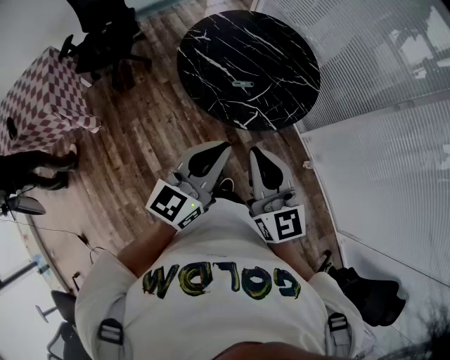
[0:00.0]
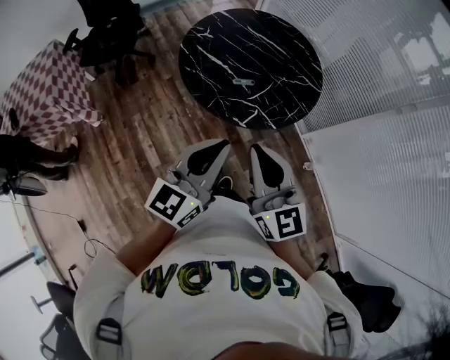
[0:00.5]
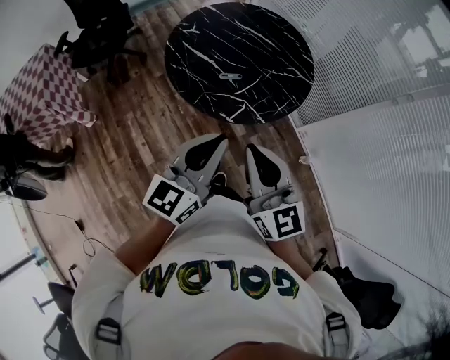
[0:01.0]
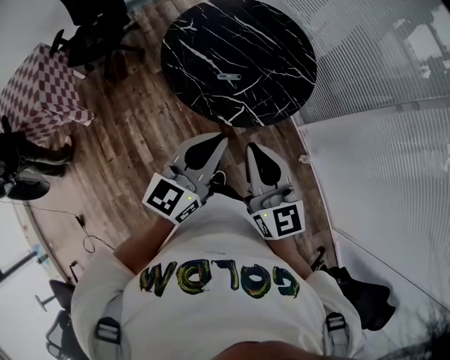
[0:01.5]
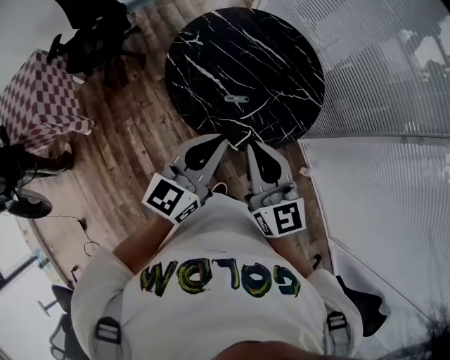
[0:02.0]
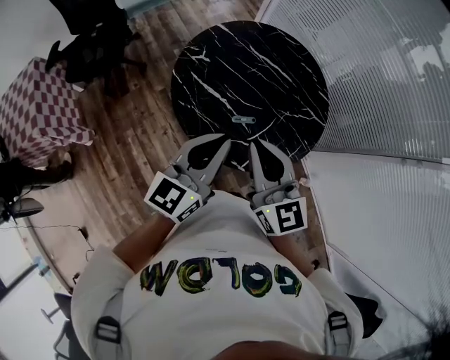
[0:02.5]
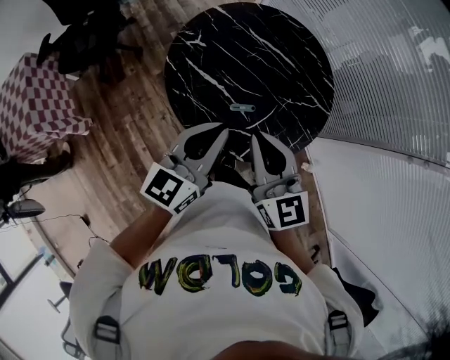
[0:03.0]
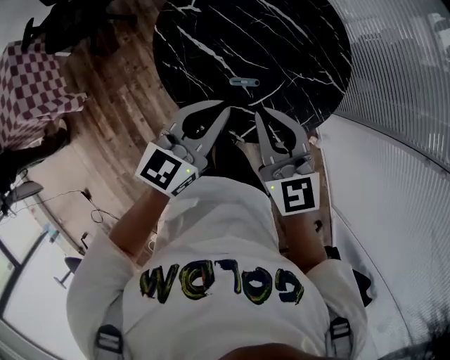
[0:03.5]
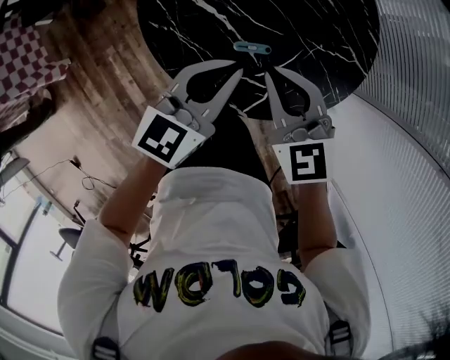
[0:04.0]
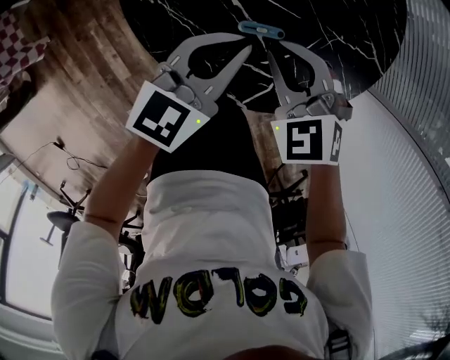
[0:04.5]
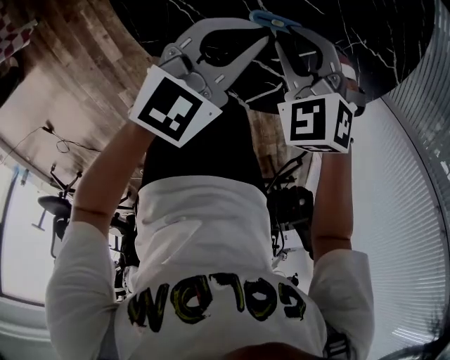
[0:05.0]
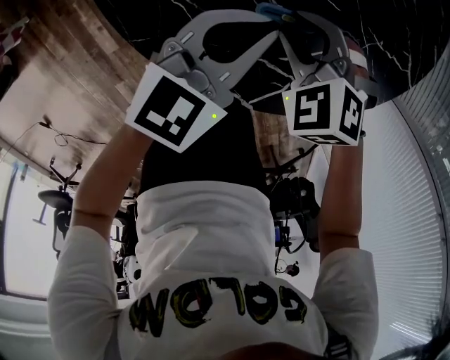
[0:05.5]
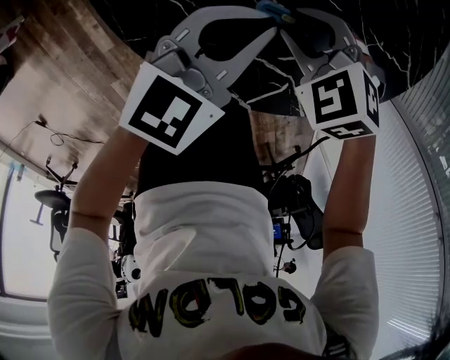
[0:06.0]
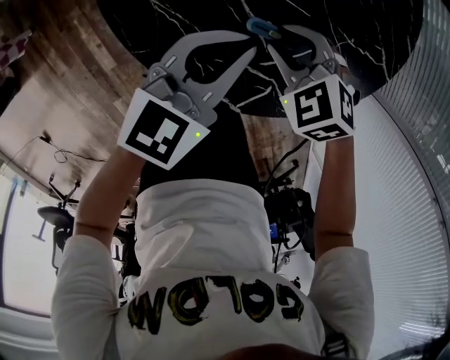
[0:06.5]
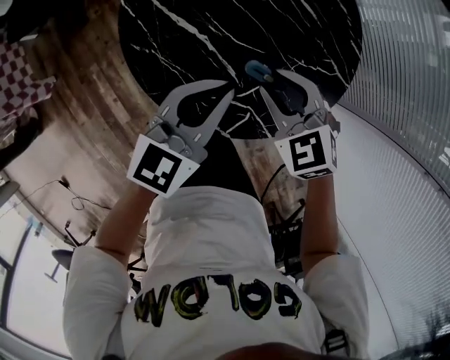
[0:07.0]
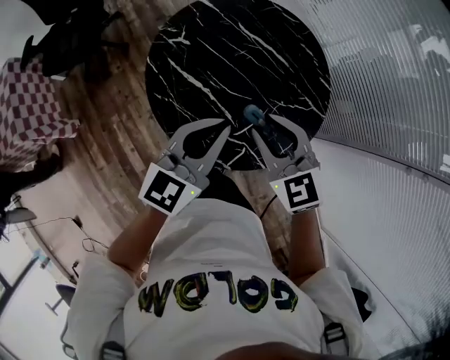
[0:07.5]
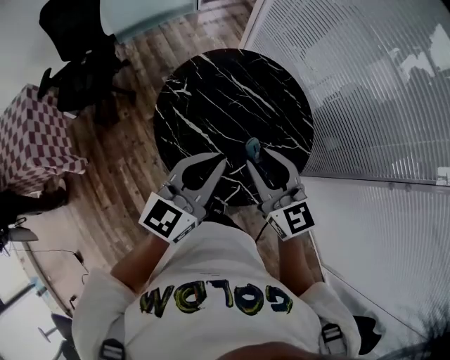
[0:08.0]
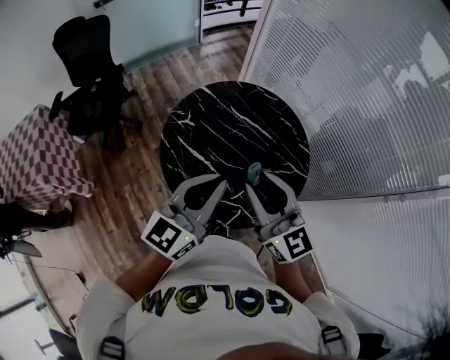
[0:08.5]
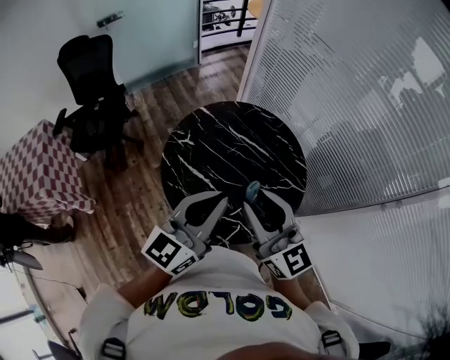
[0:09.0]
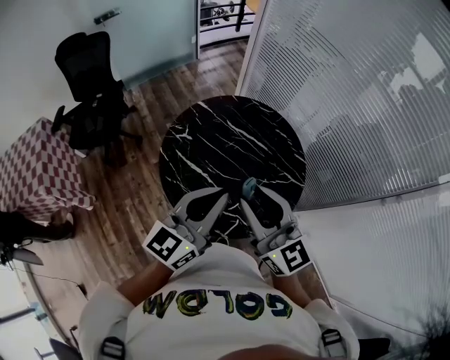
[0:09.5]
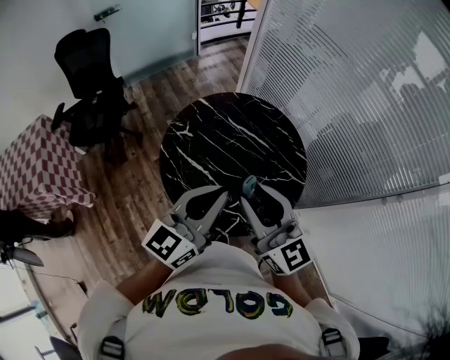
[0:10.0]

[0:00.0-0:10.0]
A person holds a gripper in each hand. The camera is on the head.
0:00.0 to 0:02.0: The two grippers go roughly 15 cm forward.
0:02.0 to 0:04.0: The two grippers go approximately 25 cm downward and forward. The right gripper tilts its fingers roughly 30 degrees downward.
0:04.0 to 0:06.0: The grippers both shift downward by approximately 20 cm. The right gripper angles its fingers downward, by about 30 degrees, and opens up.
0:06.0 to 0:08.0: The grippers both shift upward by about 40 cm. The right gripper points its fingers approximately 60 degrees further upward. The left gripper changes its angle by about 20 degrees.
0:08.0 to 0:10.0: The right gripper heads upward, covering approximately 10 cm. The left gripper travels upward by approximately 5 cm.

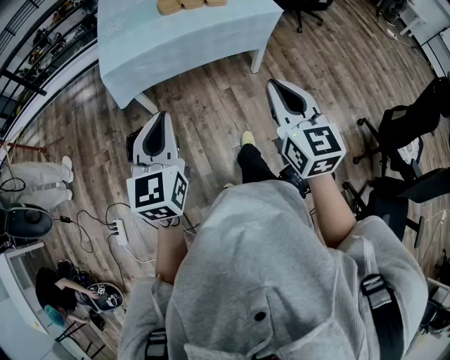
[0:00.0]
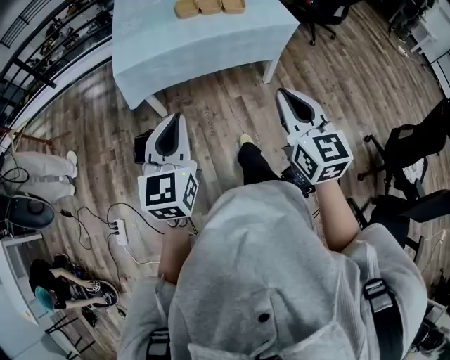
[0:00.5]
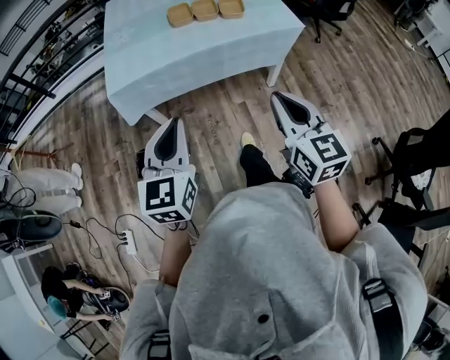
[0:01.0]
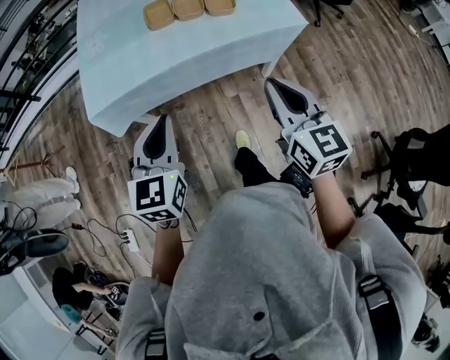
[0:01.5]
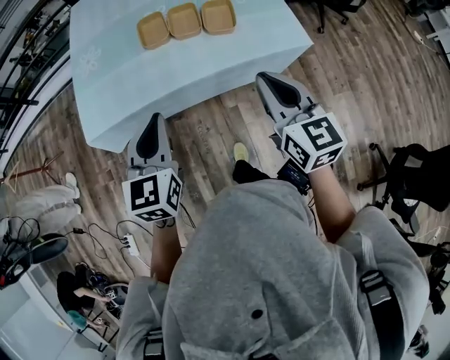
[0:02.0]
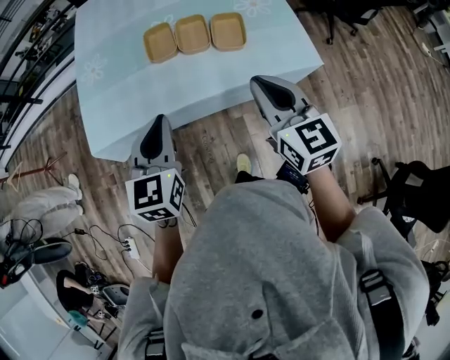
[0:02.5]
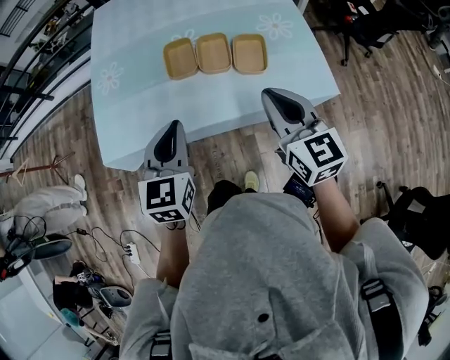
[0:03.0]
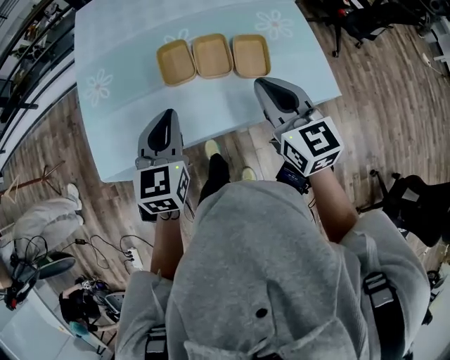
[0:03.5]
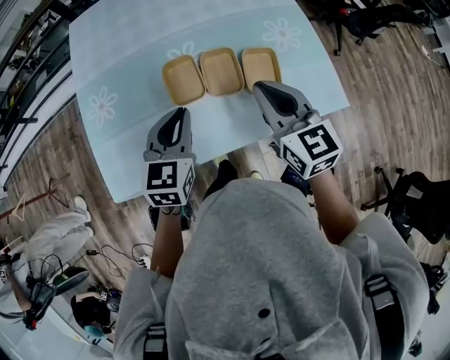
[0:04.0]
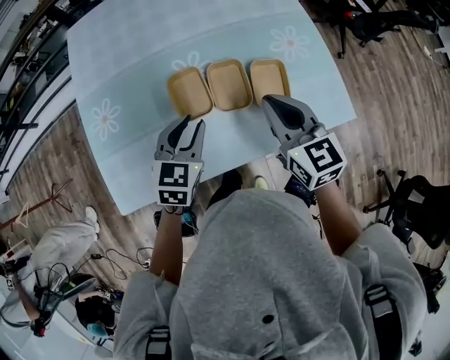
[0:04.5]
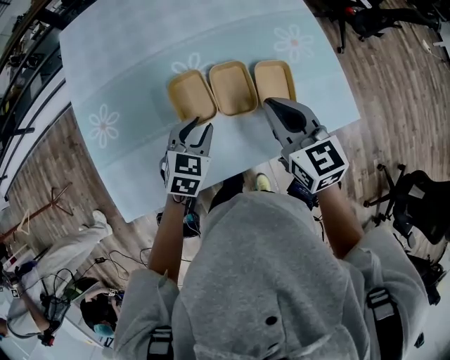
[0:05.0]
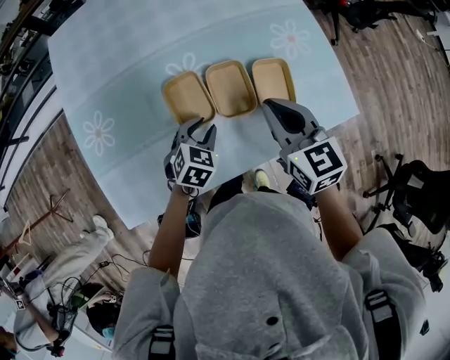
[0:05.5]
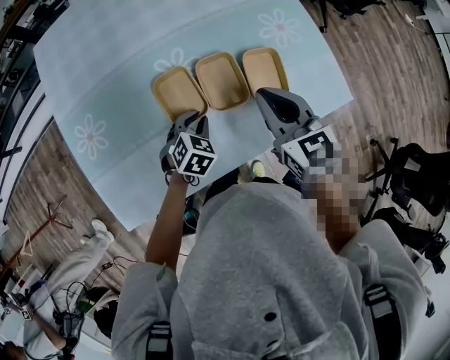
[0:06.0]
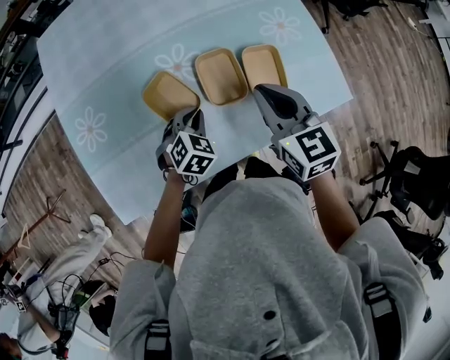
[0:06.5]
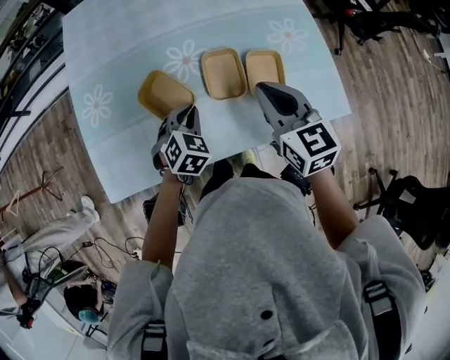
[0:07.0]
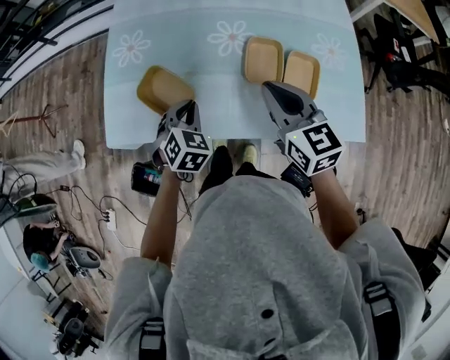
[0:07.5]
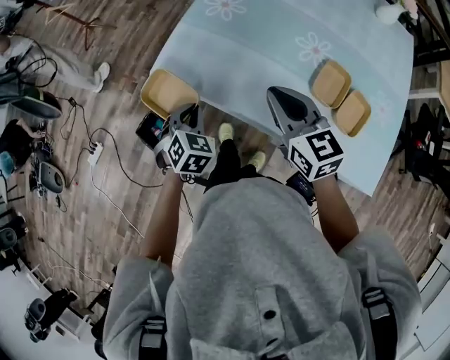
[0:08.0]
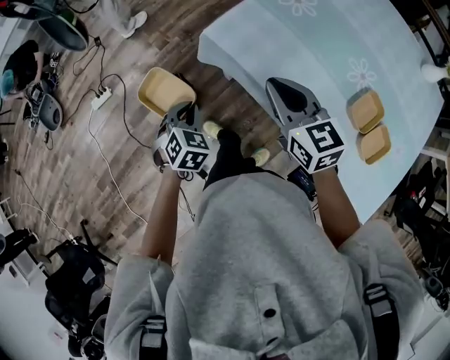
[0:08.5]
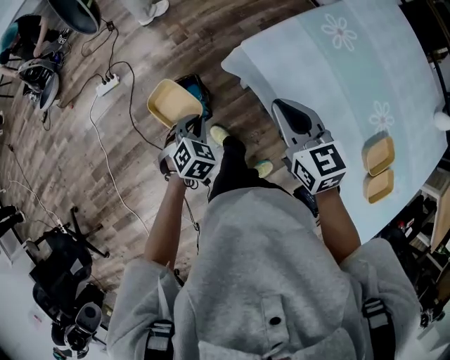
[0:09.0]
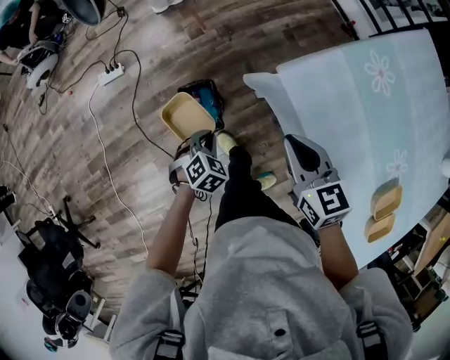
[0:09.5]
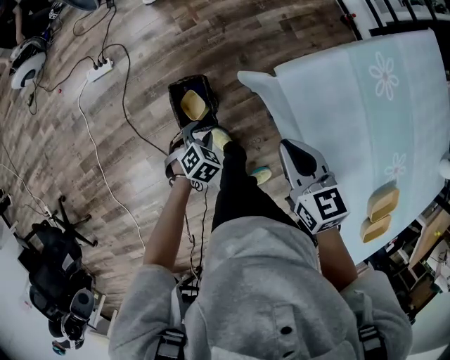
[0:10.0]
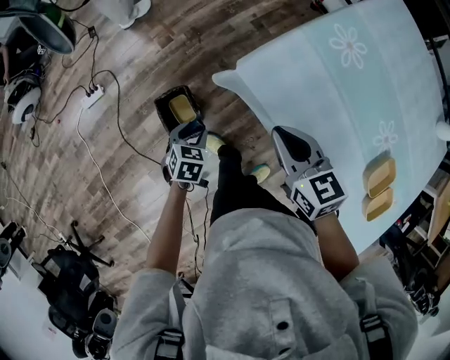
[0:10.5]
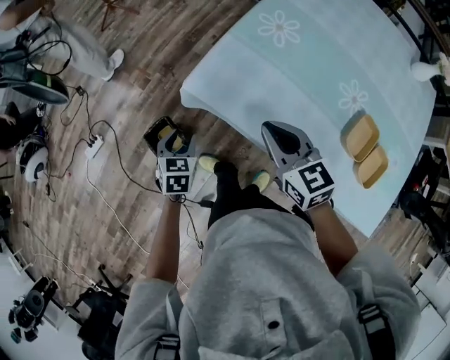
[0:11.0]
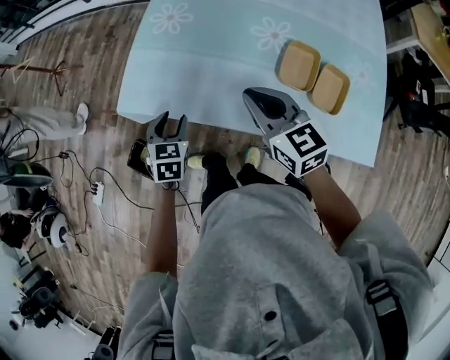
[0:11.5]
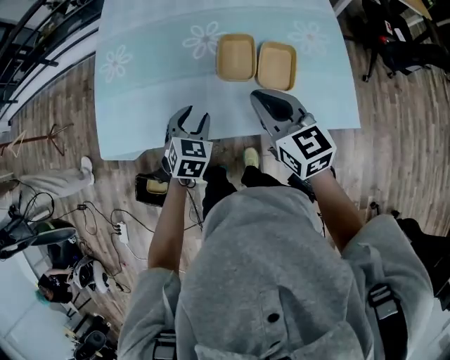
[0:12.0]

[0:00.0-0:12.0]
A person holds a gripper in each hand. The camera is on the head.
0:00.0 to 0:02.0: The two grippers travel together, forward, about 40 cm.
0:02.0 to 0:04.0: Both grippers move forward, about 30 cm.
0:04.0 to 0:06.0: The right gripper moves downward, some 5 cm. The left gripper goes approximately 20 cm downward, and tilts its fingers approximately 30 degrees downward.
0:06.0 to 0:08.0: The right gripper shifts by some 25 cm, and swivels about 50 degrees. The left gripper ends up roughly 35 cm from where it was, and changes its angle by about 60 degrees.
0:08.0 to 0:10.0: The right gripper shifts roughly 30 cm to the left, forward and downward, and rotates about 40 degrees. Meanwhile the left gripper goes roughly 35 cm to the left and downward, turns by about 40 degrees, and opens.
0:10.0 to 0:12.0: Both grippers are carried some 50 cm. The right gripper rotates roughly 60 degrees; the left gripper rotates some 60 degrees.

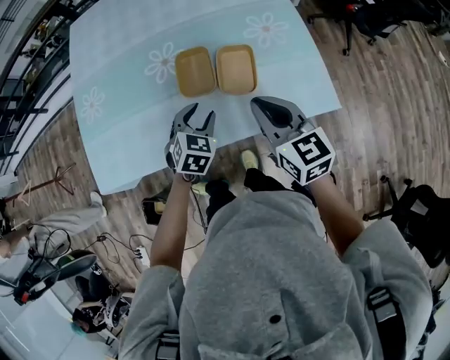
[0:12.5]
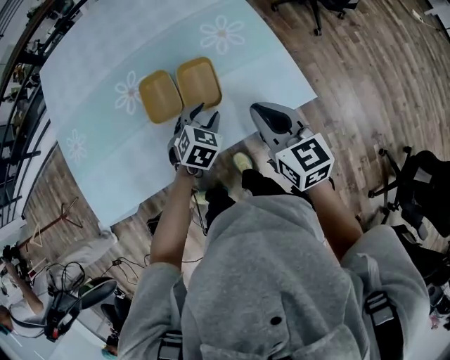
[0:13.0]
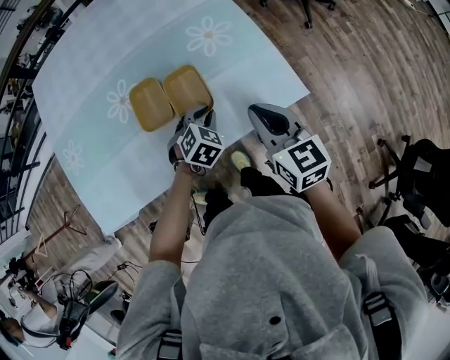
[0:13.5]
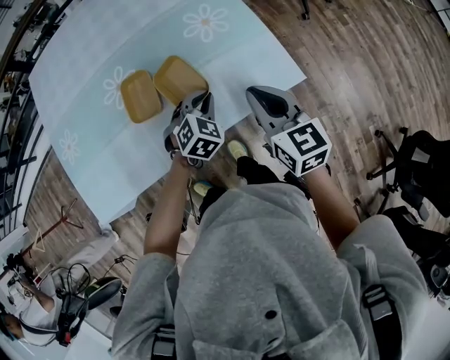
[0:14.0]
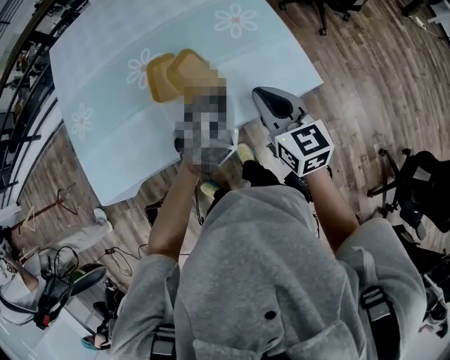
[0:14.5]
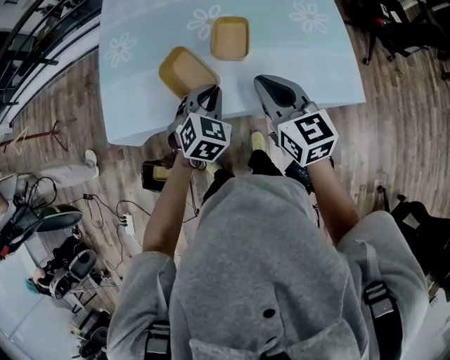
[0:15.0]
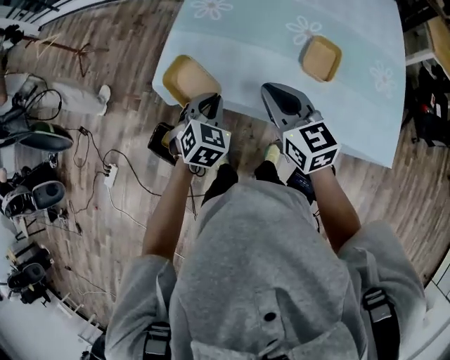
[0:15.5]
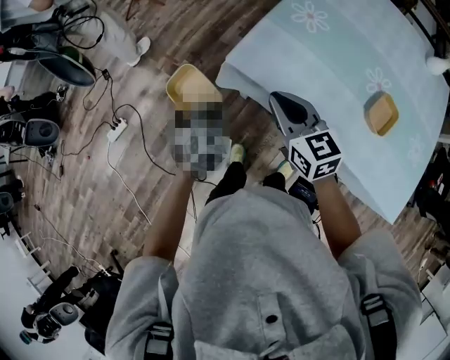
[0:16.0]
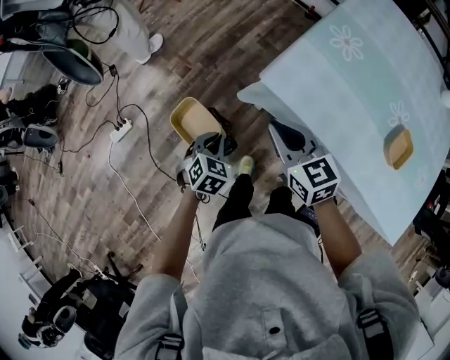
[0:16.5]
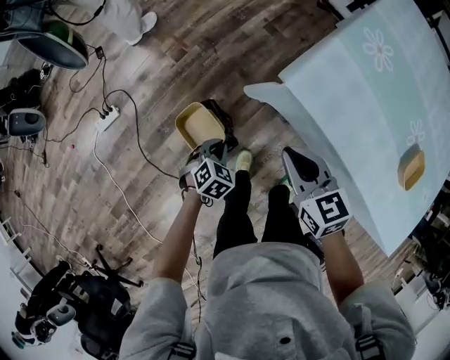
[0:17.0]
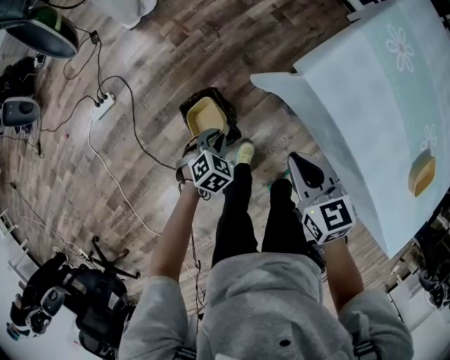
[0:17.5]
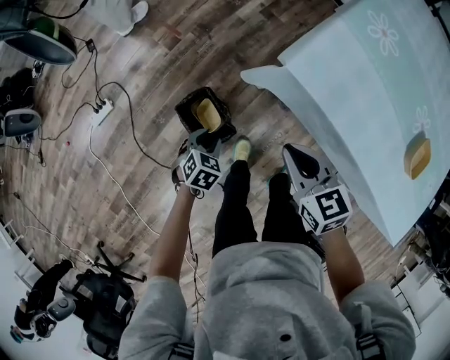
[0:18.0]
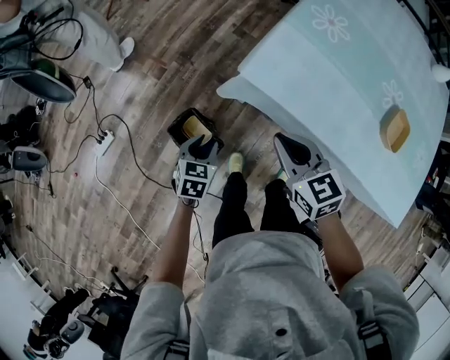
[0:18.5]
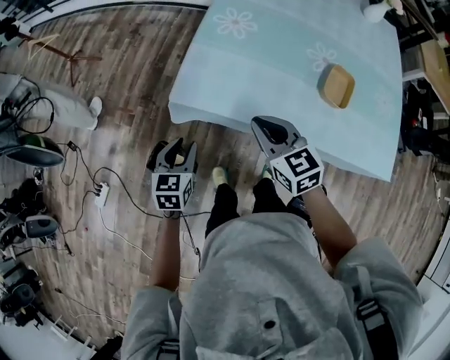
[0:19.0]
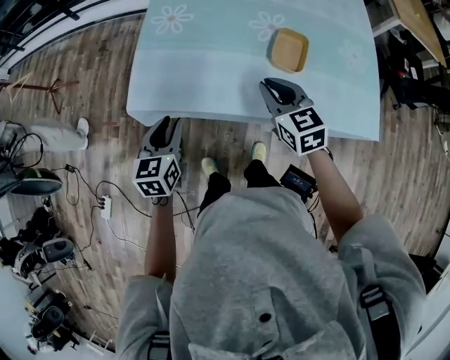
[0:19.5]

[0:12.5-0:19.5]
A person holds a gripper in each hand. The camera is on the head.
0:12.5 to 0:14.5: The right gripper travels to the right by about 5 cm; the left gripper moves to the right, roughly 15 cm, swivels roughly 20 degrees, and closes its fingers.
0:14.5 to 0:16.0: The pair of grippers is taken about 60 cm. The left gripper turns by roughly 60 degrees. The right gripper changes its angle by some 60 degrees.
0:16.0 to 0:17.5: The two grippers go approximately 25 cm downward and to the left. The left gripper turns by roughly 20 degrees, while the right gripper turns by about 20 degrees.
0:17.5 to 0:19.5: The right gripper shifts by about 40 cm, and changes its angle by some 40 degrees; the left gripper shifts about 30 cm upward, angles its fingers upward, by approximately 30 degrees, and opens.
